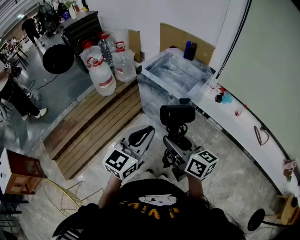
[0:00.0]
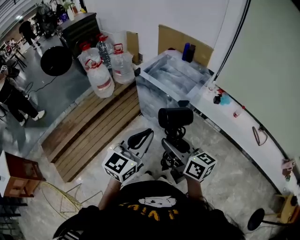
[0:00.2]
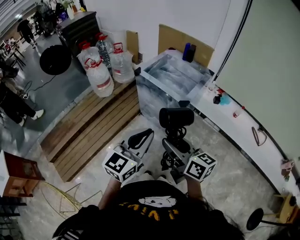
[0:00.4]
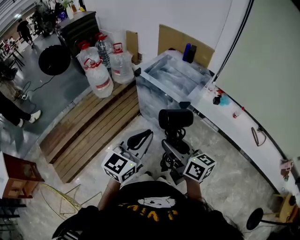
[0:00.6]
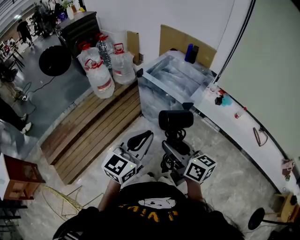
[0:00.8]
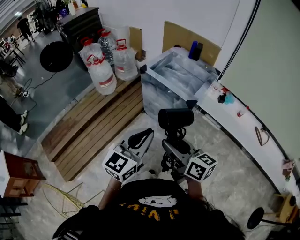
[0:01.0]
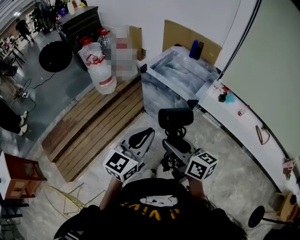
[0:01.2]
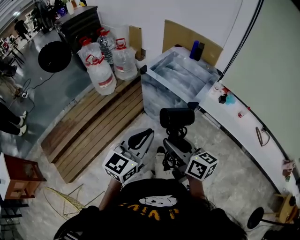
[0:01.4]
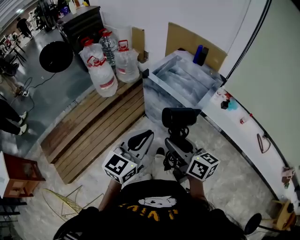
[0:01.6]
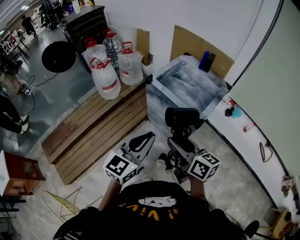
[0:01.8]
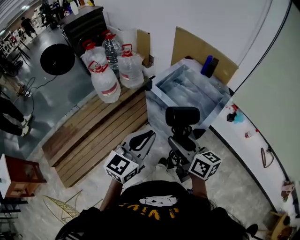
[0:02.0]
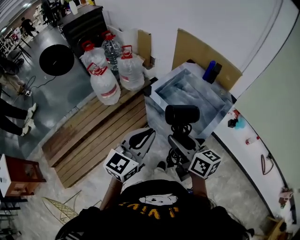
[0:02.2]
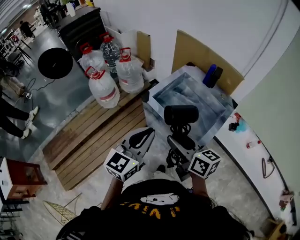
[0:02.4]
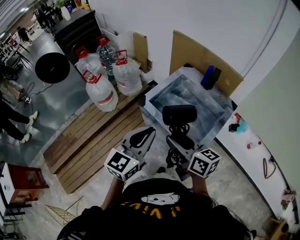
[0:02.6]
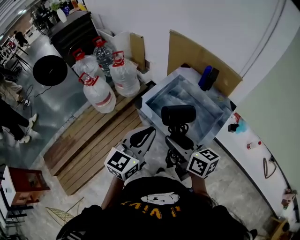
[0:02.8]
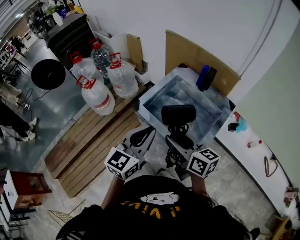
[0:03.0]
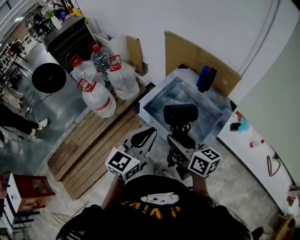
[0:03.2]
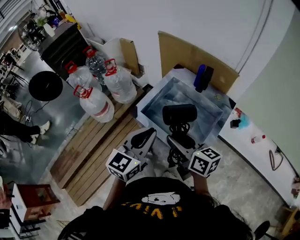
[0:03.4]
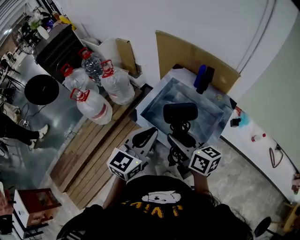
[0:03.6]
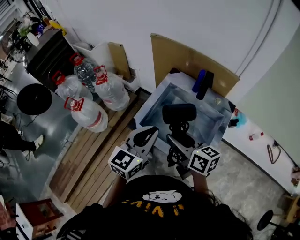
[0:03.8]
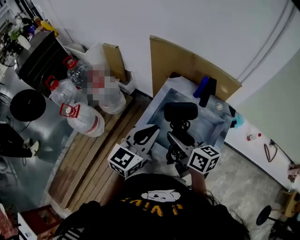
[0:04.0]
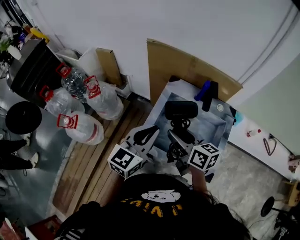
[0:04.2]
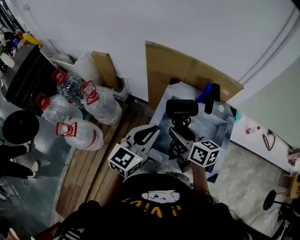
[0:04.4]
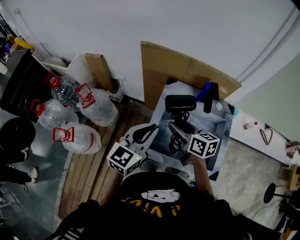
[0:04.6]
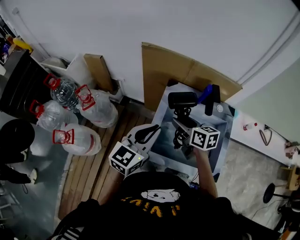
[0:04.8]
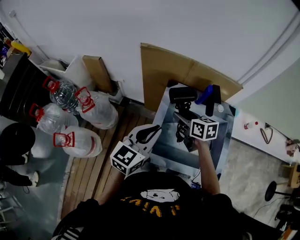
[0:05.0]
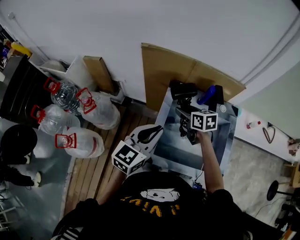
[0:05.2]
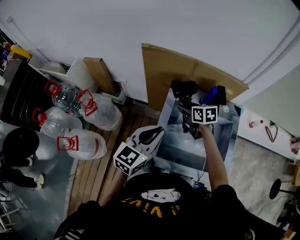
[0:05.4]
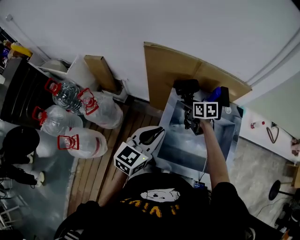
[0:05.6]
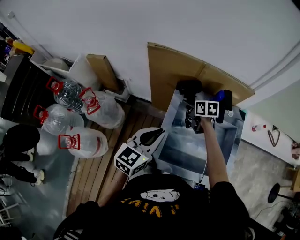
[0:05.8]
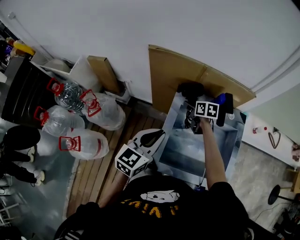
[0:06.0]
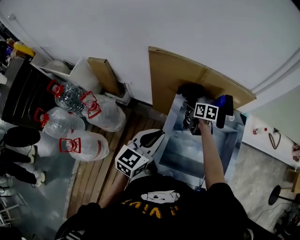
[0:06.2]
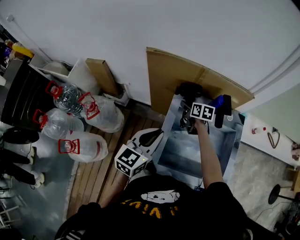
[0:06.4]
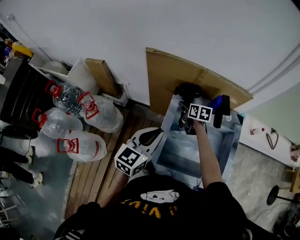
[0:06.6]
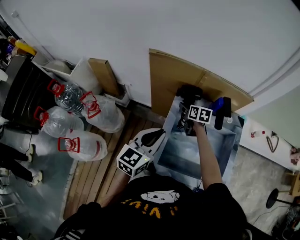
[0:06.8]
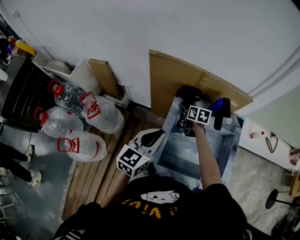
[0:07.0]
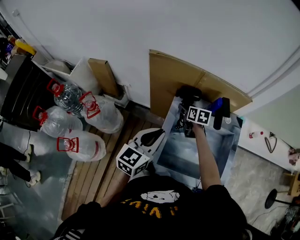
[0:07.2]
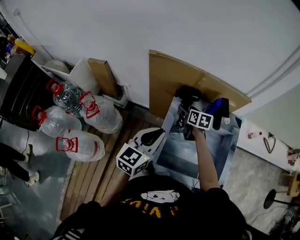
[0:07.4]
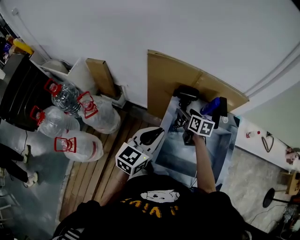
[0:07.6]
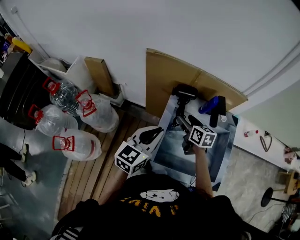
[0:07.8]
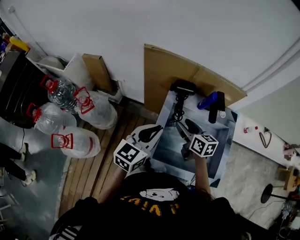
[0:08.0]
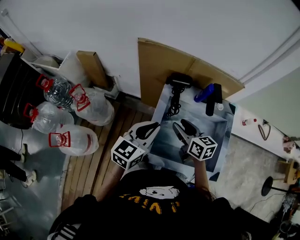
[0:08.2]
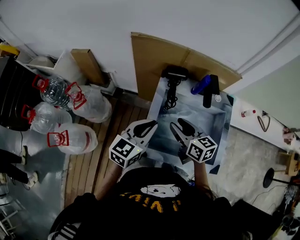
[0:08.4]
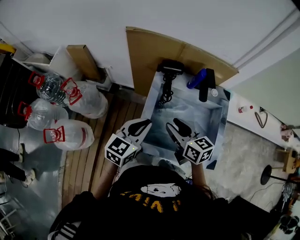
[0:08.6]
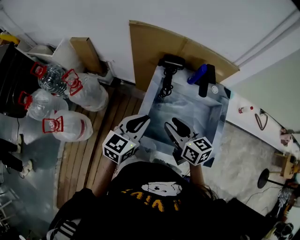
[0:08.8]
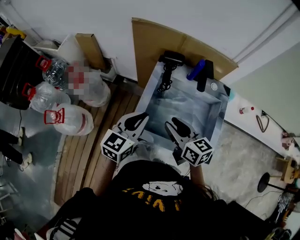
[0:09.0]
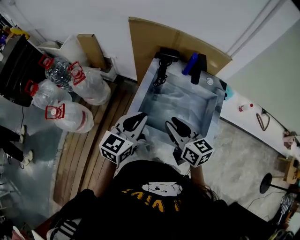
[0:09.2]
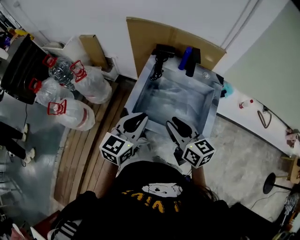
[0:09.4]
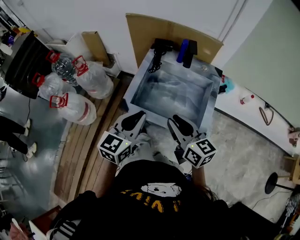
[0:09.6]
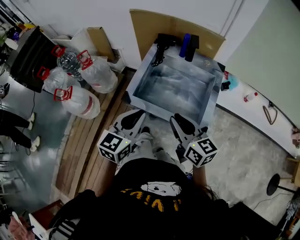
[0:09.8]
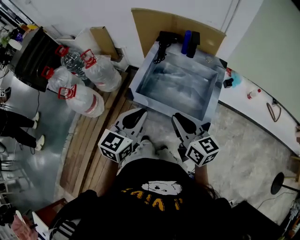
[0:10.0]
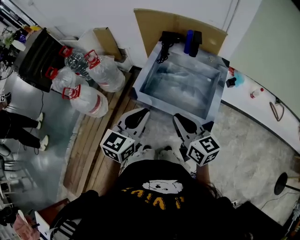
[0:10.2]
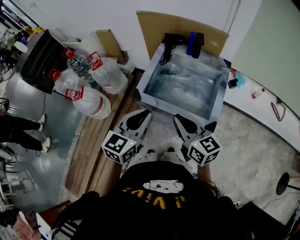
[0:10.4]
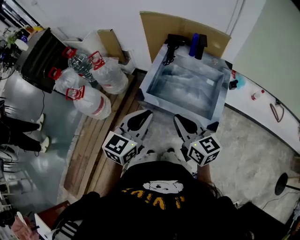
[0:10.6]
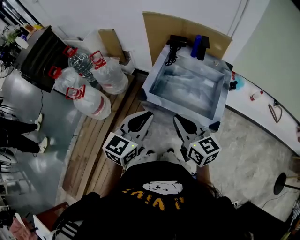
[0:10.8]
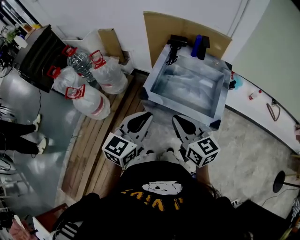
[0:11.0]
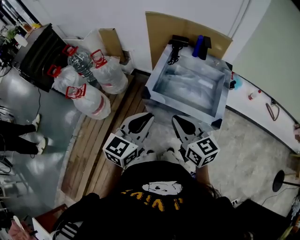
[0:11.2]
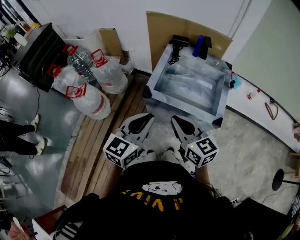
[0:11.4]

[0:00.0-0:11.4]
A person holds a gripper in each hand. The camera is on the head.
0:00.0 to 0:01.4: The grippers both shift to the left by roughly 5 cm.
0:01.4 to 0:02.8: The two grippers go approximately 35 cm forward.
0:02.8 to 0:04.2: Both grippers travel together forward, about 25 cm. The left gripper swivels approximately 20 degrees. Meanwhile the right gripper turns by roughly 20 degrees.
0:04.2 to 0:05.6: The left gripper moves forward, approximately 10 cm. The right gripper heads forward and downward, covering approximately 30 cm, and changes its angle by some 30 degrees.
0:05.6 to 0:07.2: The right gripper ends up some 5 cm from where it was.
0:07.2 to 0:08.6: The left gripper ends up approximately 5 cm from where it was. The right gripper heads backward and upward, covering some 25 cm, rotates some 20 degrees, and closes up.
0:08.6 to 0:10.0: The left gripper shifts roughly 25 cm backward. The right gripper moves backward and to the right, approximately 25 cm, and closes.
0:10.0 to 0:11.4: The grippers both shift to the left and backward by roughly 10 cm.

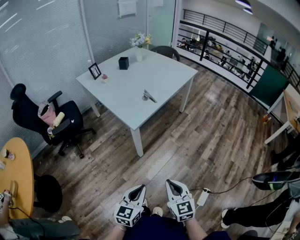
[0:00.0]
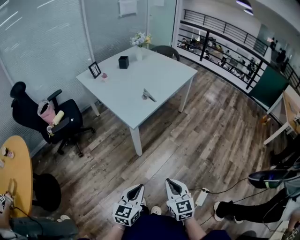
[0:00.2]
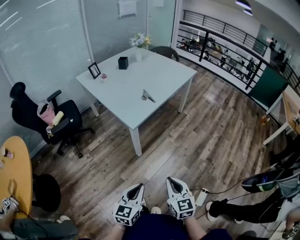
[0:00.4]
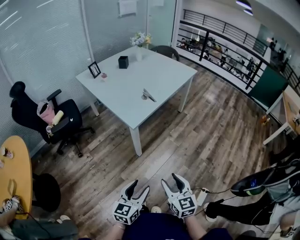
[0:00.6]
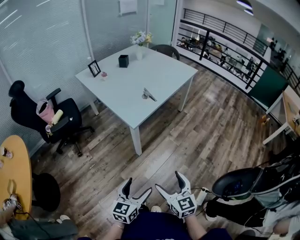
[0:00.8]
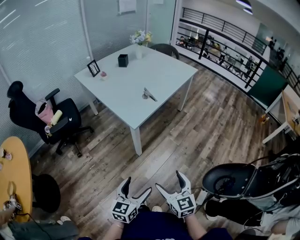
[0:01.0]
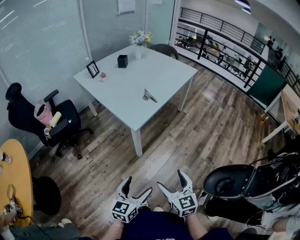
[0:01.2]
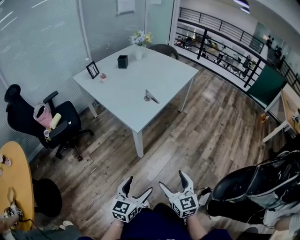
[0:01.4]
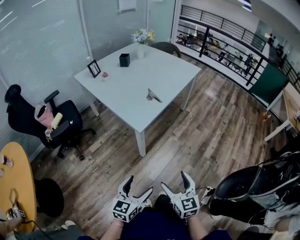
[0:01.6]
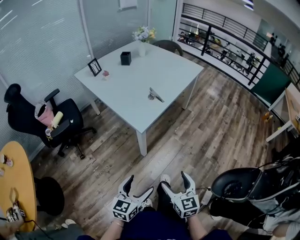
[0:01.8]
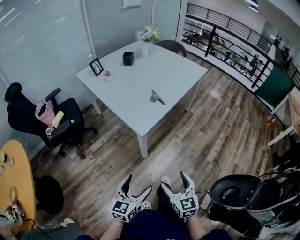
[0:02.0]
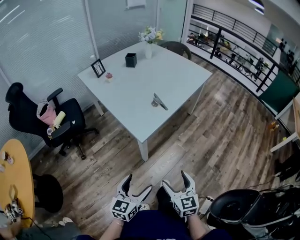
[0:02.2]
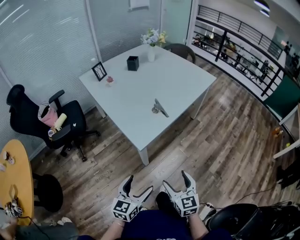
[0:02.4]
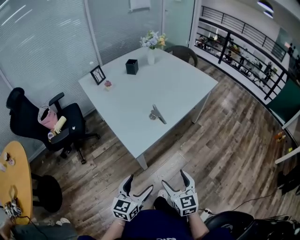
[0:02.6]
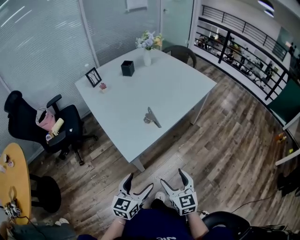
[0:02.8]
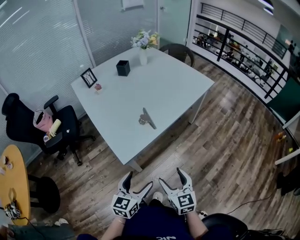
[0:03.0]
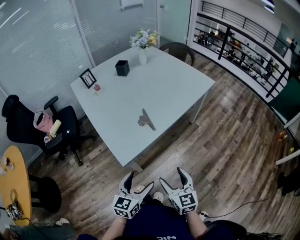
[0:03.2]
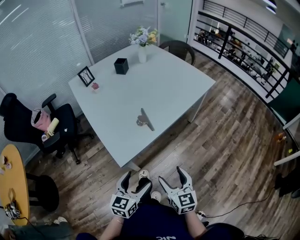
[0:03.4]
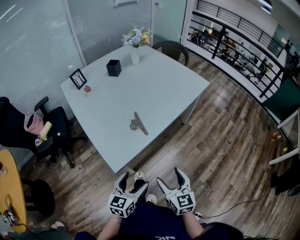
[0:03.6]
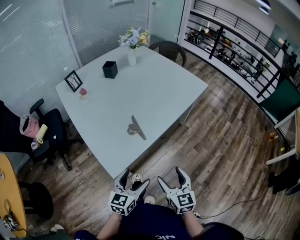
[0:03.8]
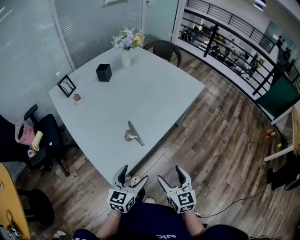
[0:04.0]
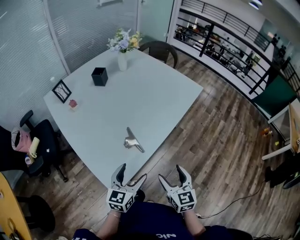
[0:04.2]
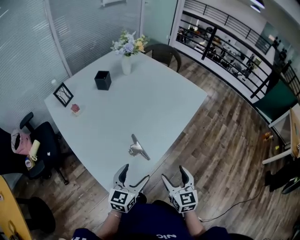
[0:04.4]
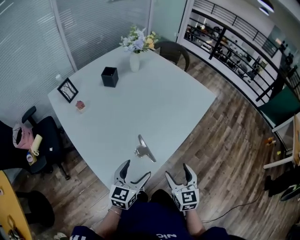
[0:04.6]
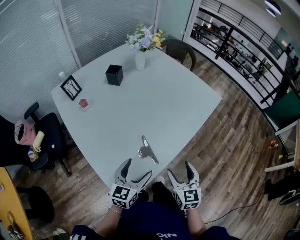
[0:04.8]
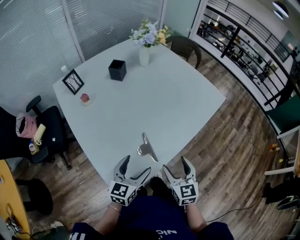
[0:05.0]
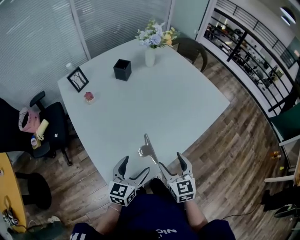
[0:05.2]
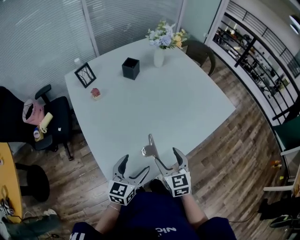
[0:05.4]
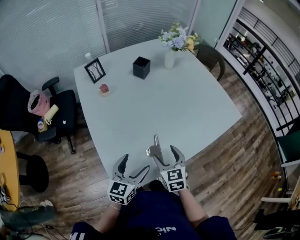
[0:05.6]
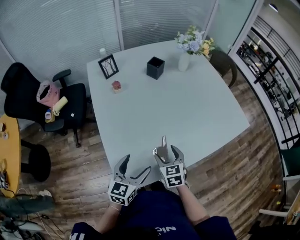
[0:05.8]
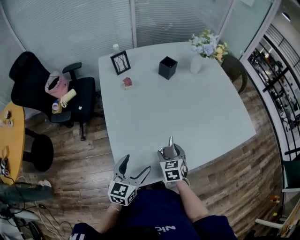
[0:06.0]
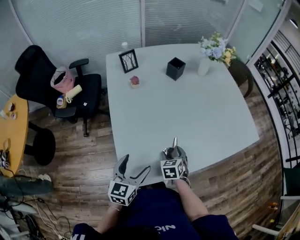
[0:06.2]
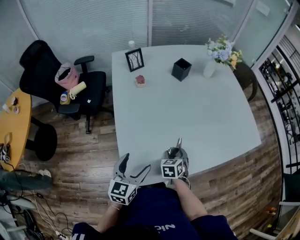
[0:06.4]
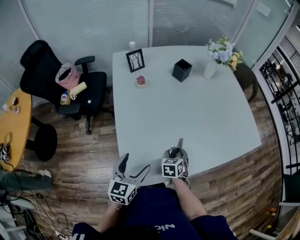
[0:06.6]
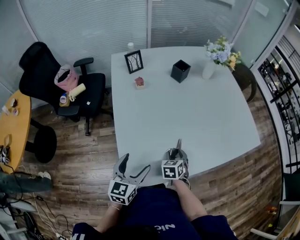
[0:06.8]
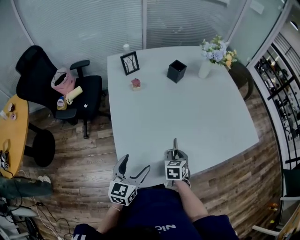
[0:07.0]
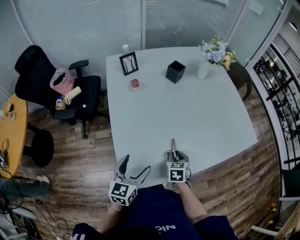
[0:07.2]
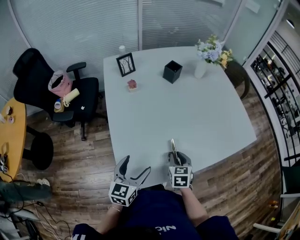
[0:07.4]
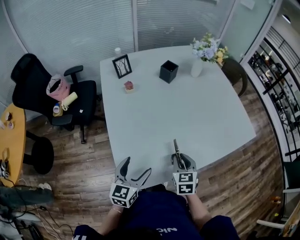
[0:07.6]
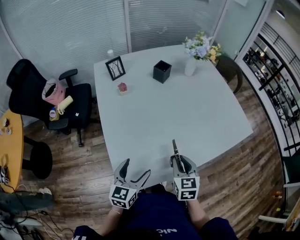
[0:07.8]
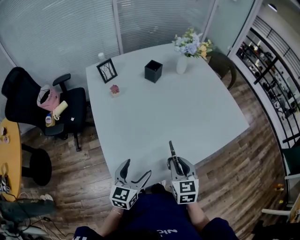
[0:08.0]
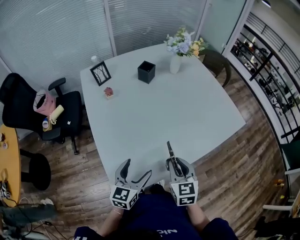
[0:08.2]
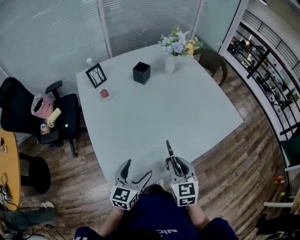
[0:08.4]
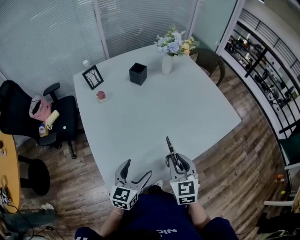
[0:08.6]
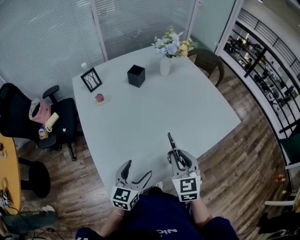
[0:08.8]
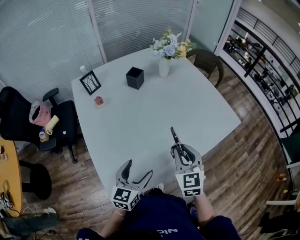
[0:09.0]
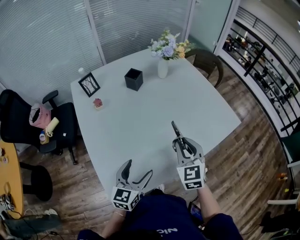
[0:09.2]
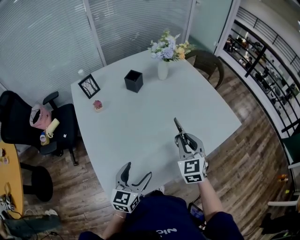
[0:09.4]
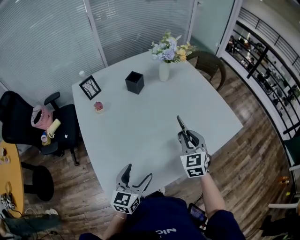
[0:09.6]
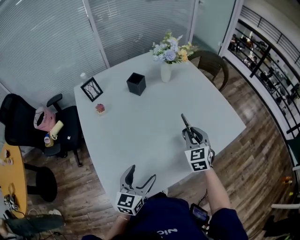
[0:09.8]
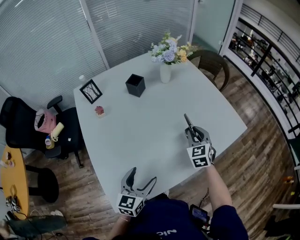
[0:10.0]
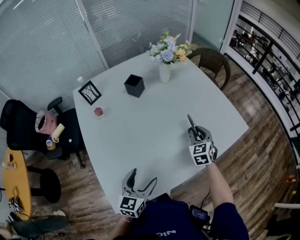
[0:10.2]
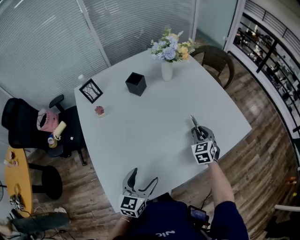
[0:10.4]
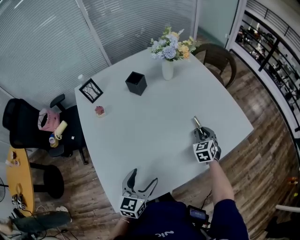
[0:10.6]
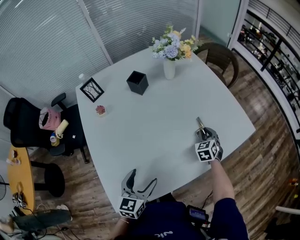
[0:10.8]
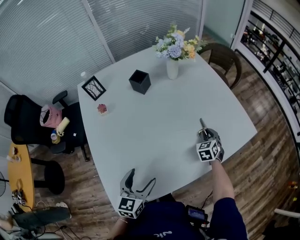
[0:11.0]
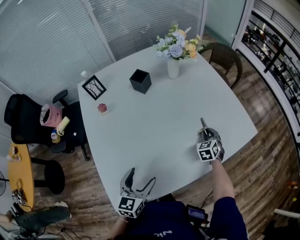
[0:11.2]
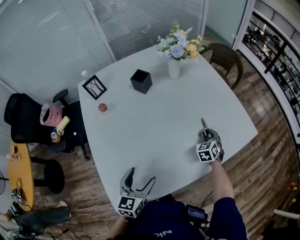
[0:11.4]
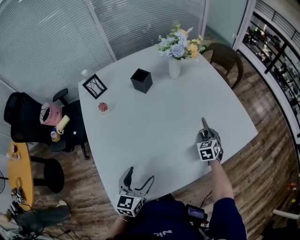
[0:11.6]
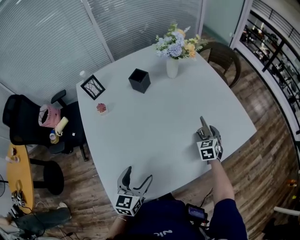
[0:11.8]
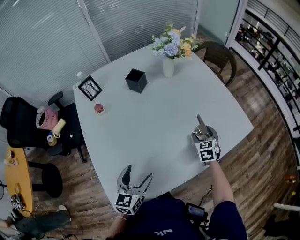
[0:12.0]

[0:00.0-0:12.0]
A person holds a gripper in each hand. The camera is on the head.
0:00.0 to 0:01.6: The right gripper shifts some 5 cm forward, and opens its fingers. Meanwhile the left gripper shifts roughly 10 cm to the left and forward, and opens up.
0:01.6 to 0:03.0: The left gripper moves forward and to the right, approximately 25 cm, while the right gripper heads forward, covering roughly 25 cm.
0:03.0 to 0:04.4: The grippers both shift forward by roughly 25 cm.
0:04.4 to 0:06.0: The right gripper ends up about 25 cm from where it was, and turns by about 40 degrees. Meanwhile the left gripper shifts by about 10 cm, and rotates about 30 degrees.
0:06.0 to 0:07.6: The right gripper goes about 5 cm upward, and closes.
0:07.6 to 0:09.0: The right gripper heads upward and to the right, covering roughly 15 cm, while the left gripper moves to the right, roughly 10 cm.
0:09.0 to 0:10.4: The right gripper moves forward, downward and to the right, approximately 25 cm. Meanwhile the left gripper shifts by some 5 cm.
0:10.4 to 0:12.0: The right gripper opens up.
